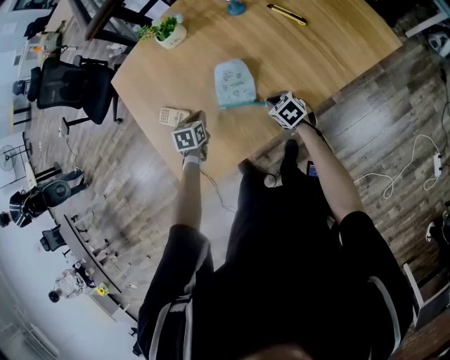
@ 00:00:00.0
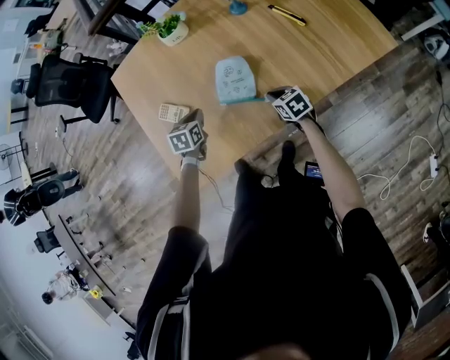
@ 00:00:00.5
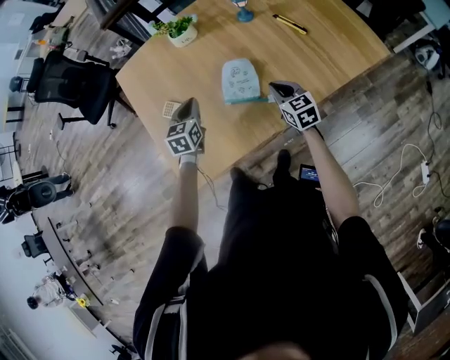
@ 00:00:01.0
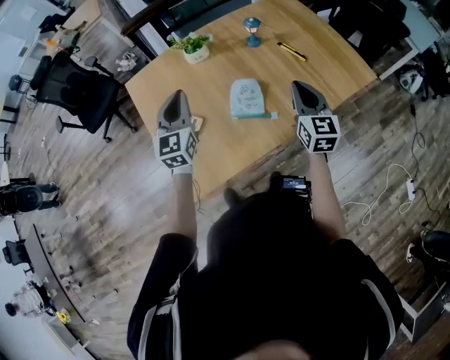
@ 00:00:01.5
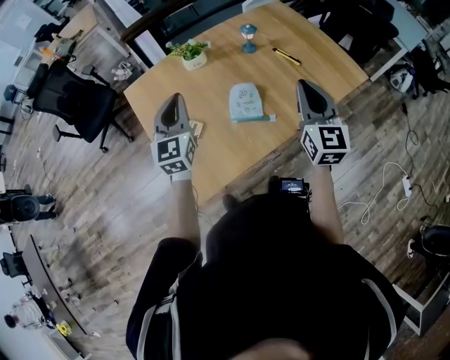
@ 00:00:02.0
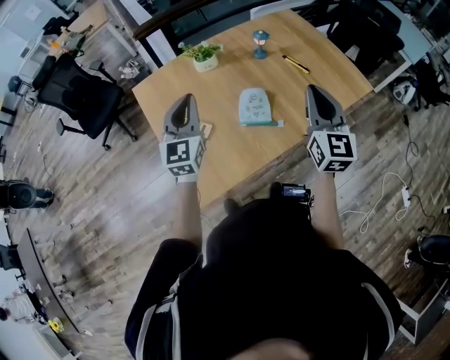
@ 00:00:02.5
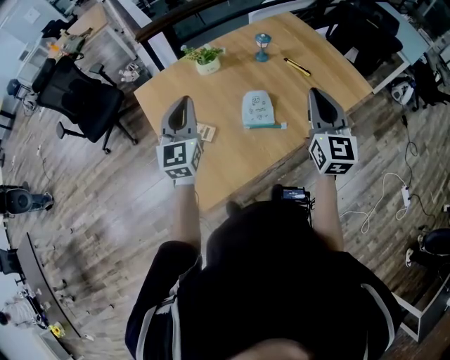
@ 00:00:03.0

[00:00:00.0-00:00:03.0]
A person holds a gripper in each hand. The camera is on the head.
00:00:00.0 to 00:00:01.5: The grippers both shift upward by some 35 cm. The right gripper angles its fingers upward, by approximately 40 degrees. Meanwhile the left gripper angles its fingers upward, by some 50 degrees.
00:00:01.5 to 00:00:03.0: The right gripper shifts some 15 cm upward and backward; the left gripper moves upward, about 5 cm.

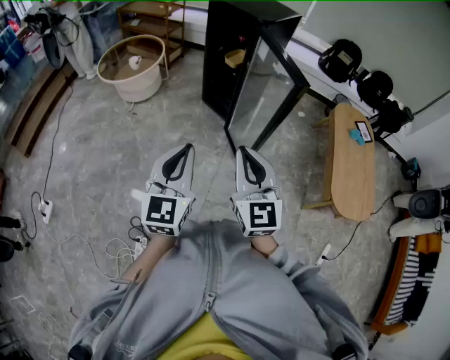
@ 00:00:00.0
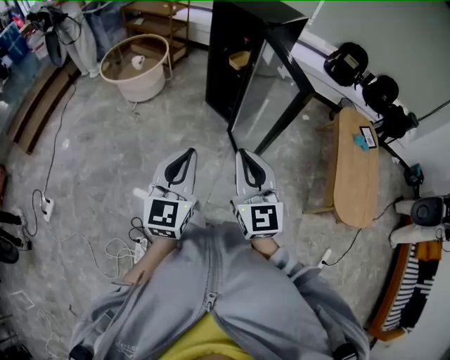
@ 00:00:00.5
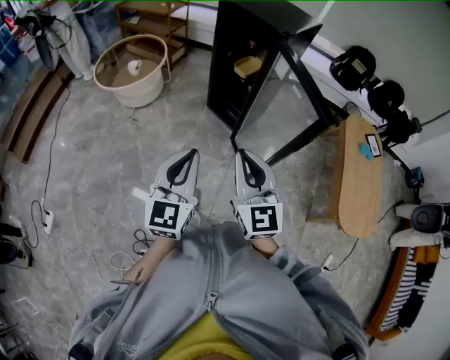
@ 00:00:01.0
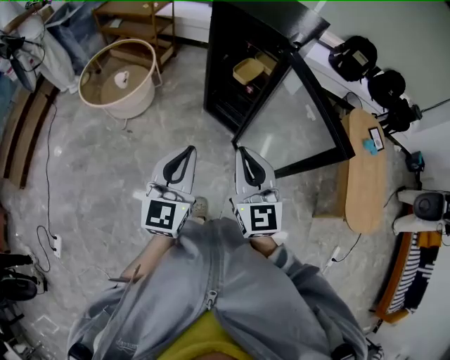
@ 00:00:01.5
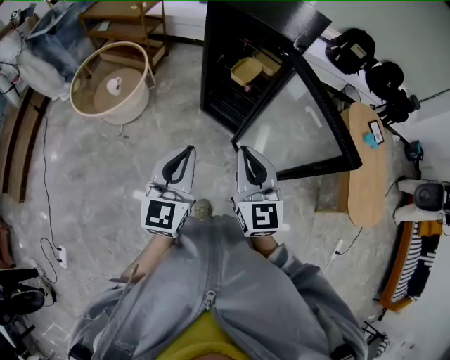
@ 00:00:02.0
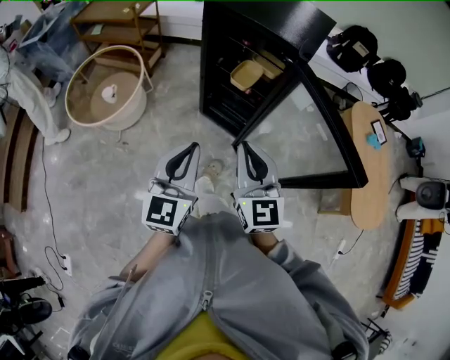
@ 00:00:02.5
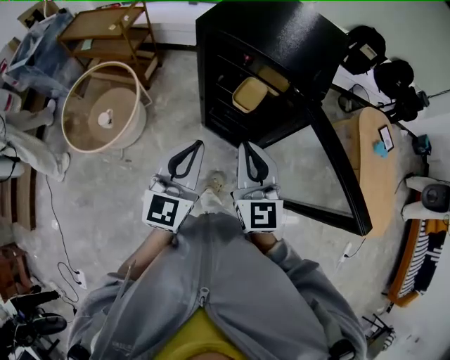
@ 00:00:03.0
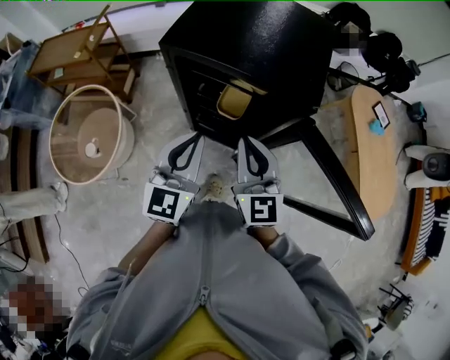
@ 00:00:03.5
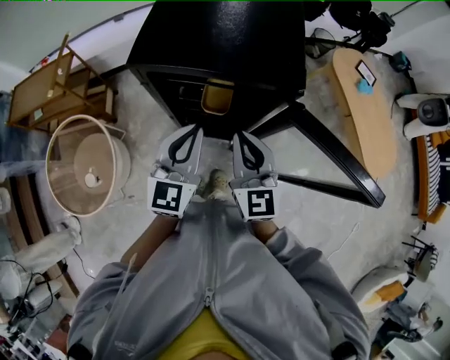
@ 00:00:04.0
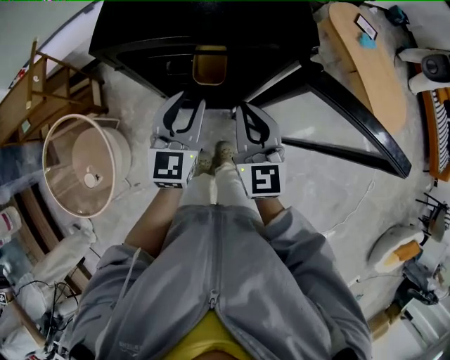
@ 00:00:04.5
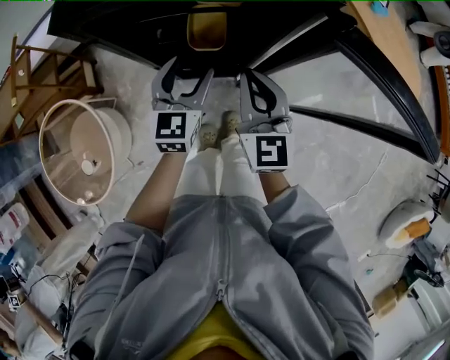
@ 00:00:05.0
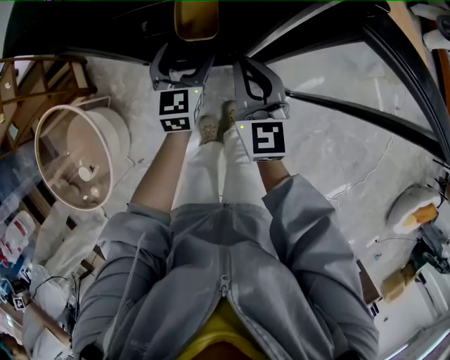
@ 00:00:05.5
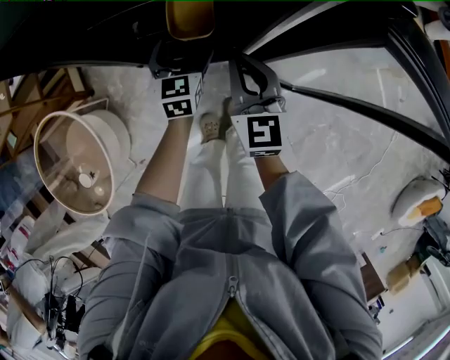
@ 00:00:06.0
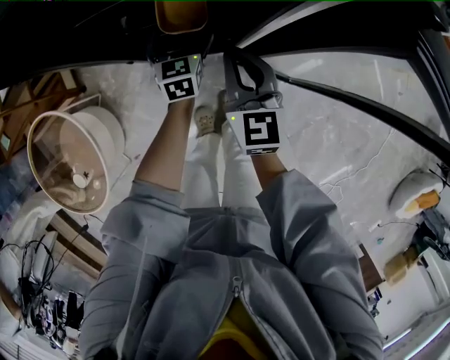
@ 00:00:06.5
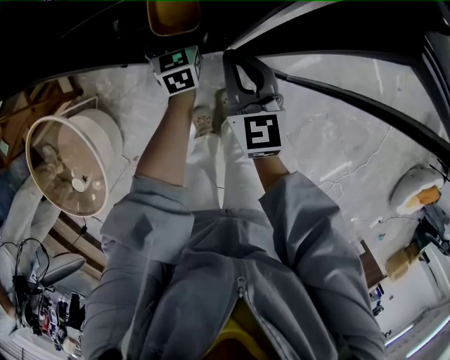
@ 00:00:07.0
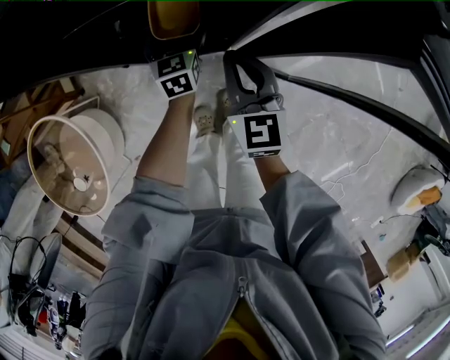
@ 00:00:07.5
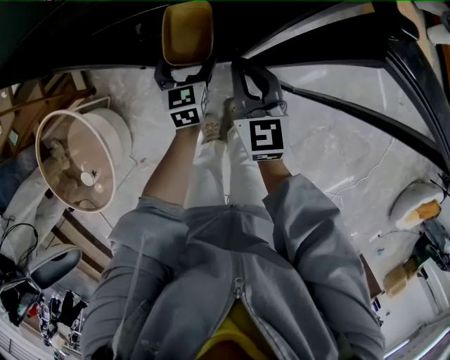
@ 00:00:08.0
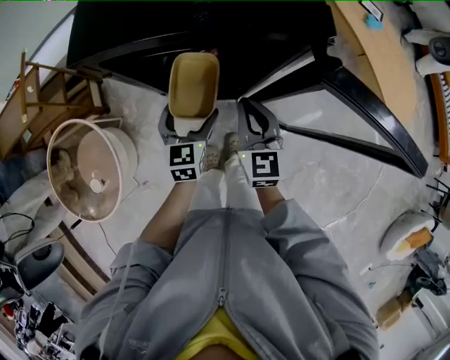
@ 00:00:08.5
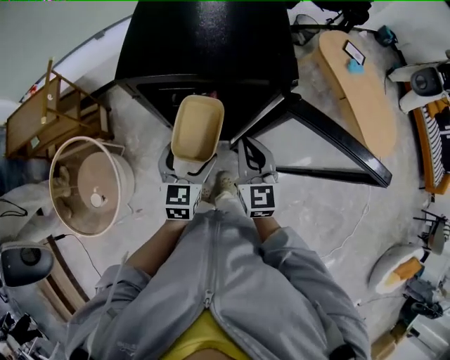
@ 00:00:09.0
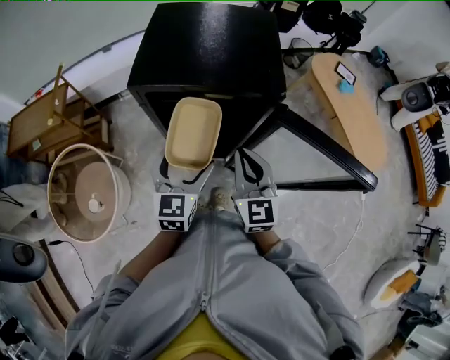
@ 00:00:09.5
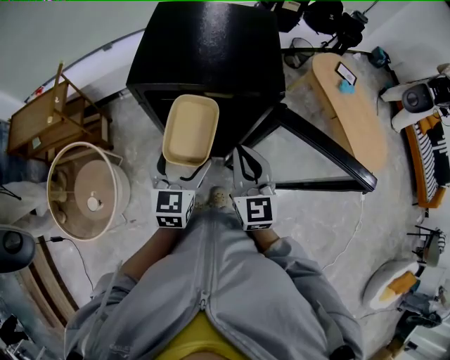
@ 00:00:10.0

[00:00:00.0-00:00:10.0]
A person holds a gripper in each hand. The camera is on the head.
00:00:00.0 to 00:00:02.0: The two grippers go roughly 35 cm forward.
00:00:02.0 to 00:00:04.0: The left gripper shifts by approximately 40 cm, and swivels about 30 degrees. The right gripper shifts by about 35 cm, and swivels some 30 degrees.
00:00:04.0 to 00:00:06.0: Both grippers travel together downward, roughly 30 cm. The left gripper swivels approximately 20 degrees, and opens its fingers.
00:00:08.0 to 00:00:10.0: The right gripper moves upward, some 25 cm; the left gripper shifts roughly 35 cm upward and backward.

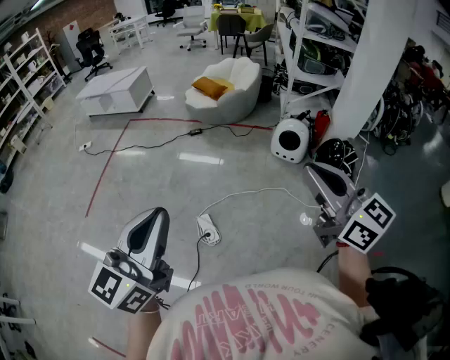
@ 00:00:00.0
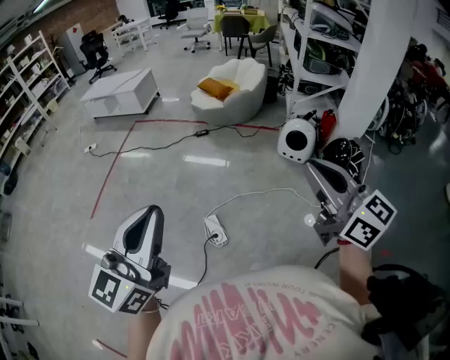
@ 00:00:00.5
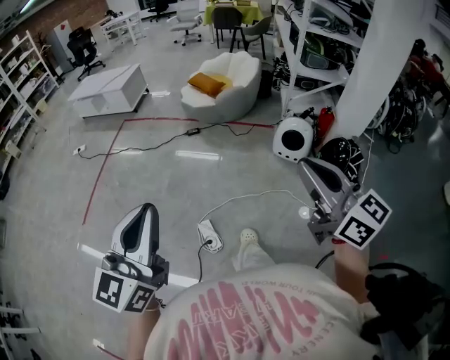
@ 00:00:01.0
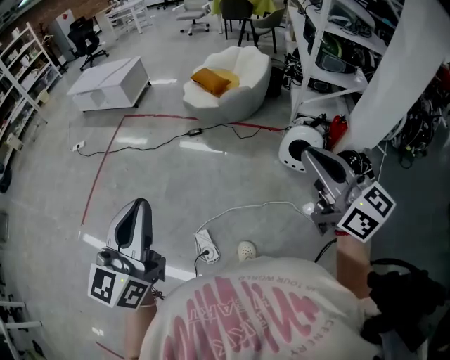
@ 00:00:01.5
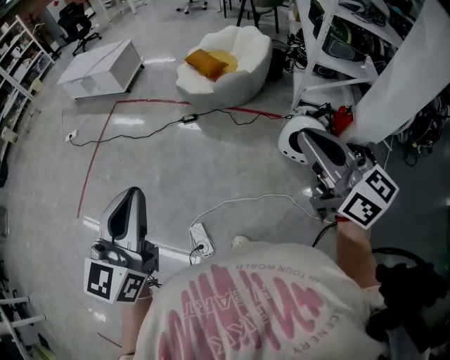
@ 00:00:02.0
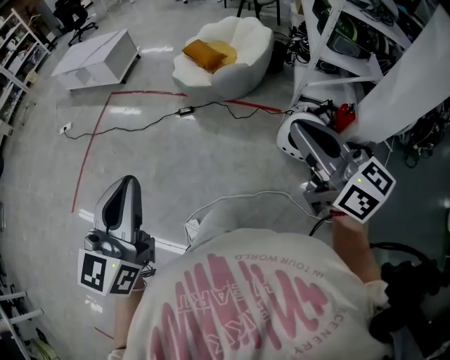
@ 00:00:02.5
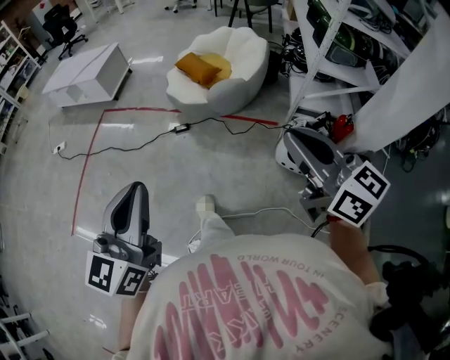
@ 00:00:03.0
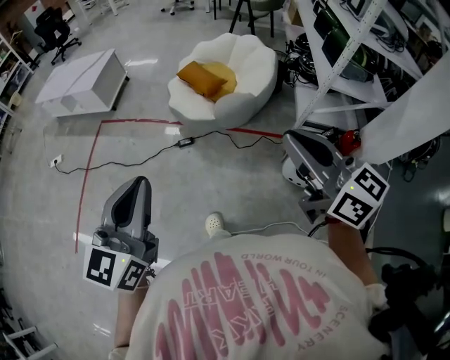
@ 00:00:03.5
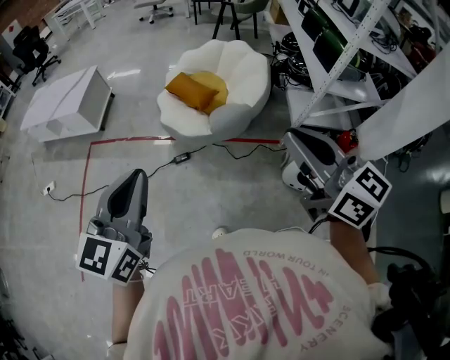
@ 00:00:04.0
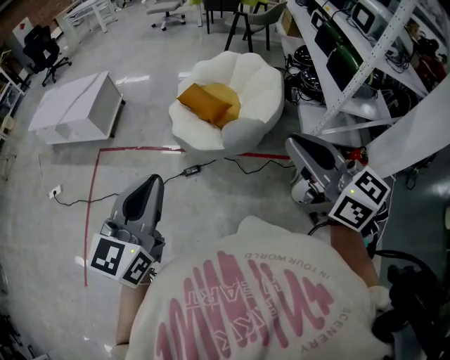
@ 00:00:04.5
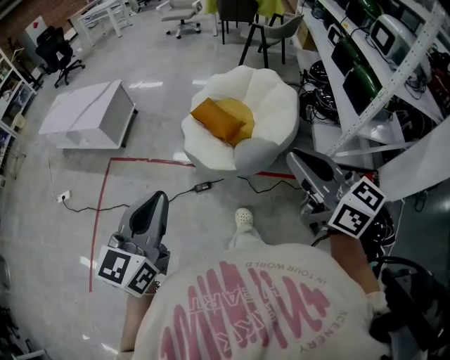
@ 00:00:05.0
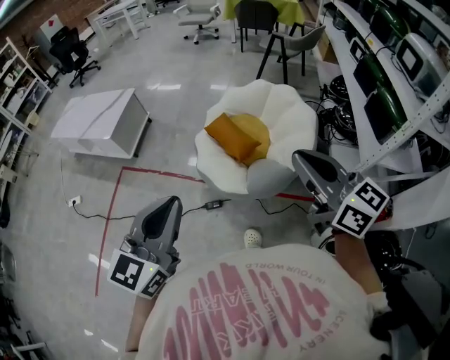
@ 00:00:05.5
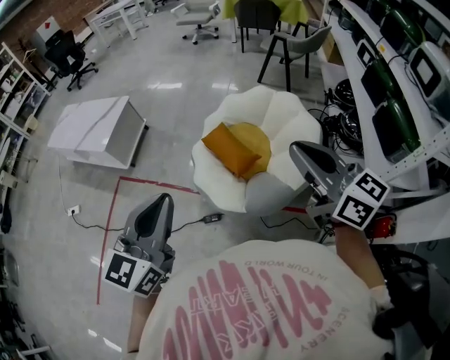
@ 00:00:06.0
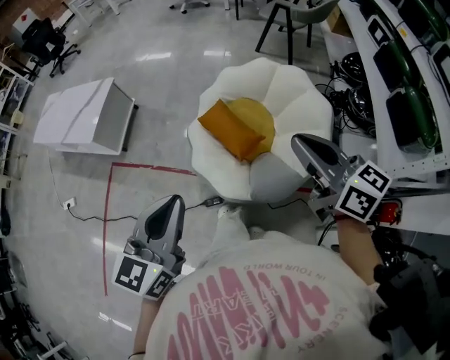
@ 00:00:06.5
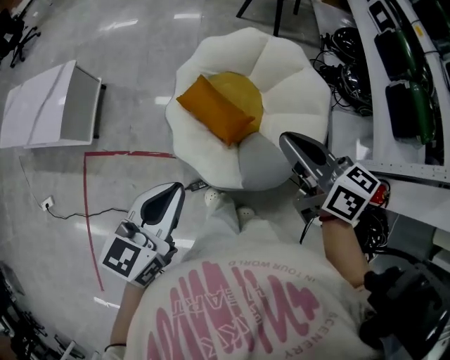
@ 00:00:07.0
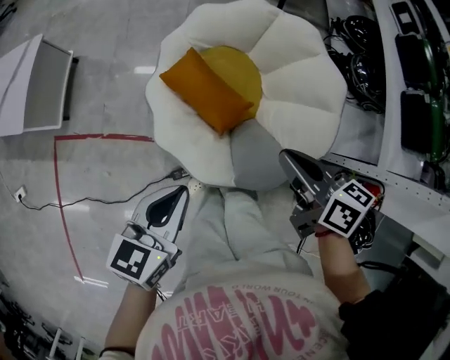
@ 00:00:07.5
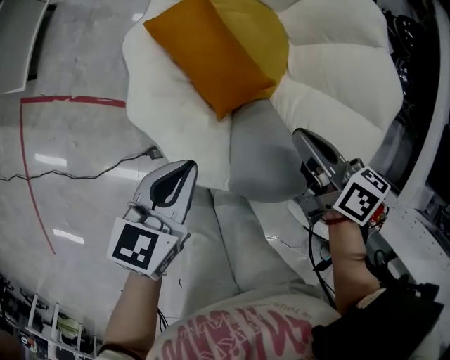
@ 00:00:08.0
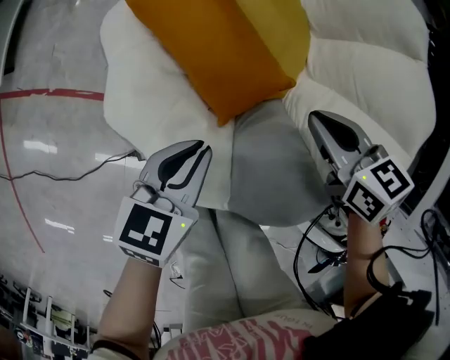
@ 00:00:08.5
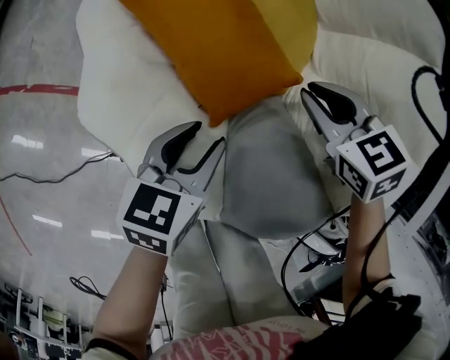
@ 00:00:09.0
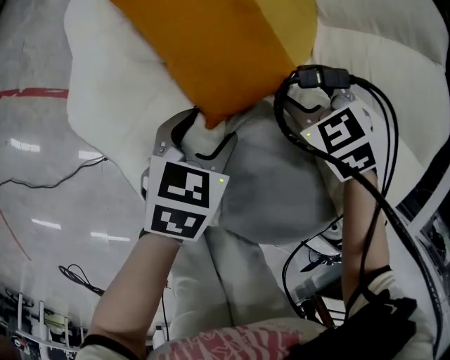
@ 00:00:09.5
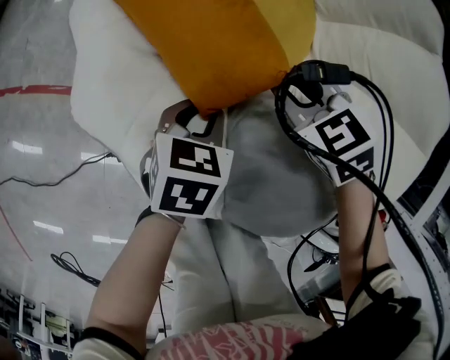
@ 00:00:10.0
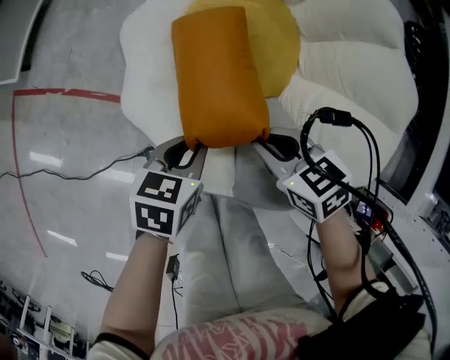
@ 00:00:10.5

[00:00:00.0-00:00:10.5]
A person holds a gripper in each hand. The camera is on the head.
00:00:00.0 to 00:00:02.0: Both grippers travel together forward, approximately 40 cm.
00:00:02.0 to 00:00:04.0: Both grippers travel together forward, about 40 cm.
00:00:04.0 to 00:00:06.5: The two grippers travel together, forward, some 40 cm.
00:00:06.5 to 00:00:08.5: Both grippers move downward, approximately 50 cm. The left gripper turns by about 40 degrees. The right gripper points its fingers some 50 degrees further downward.
00:00:08.5 to 00:00:10.5: The left gripper reaches about 15 cm downward, then returns, and opens, then closes once more. The right gripper goes downward and returns, about 10 cm each way, and opens and closes again.

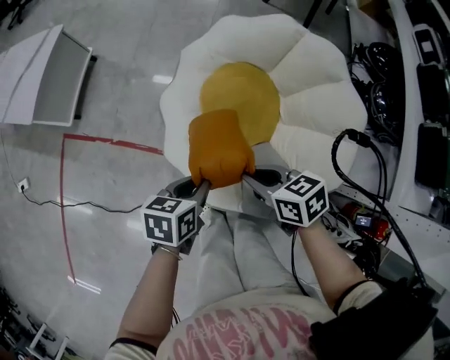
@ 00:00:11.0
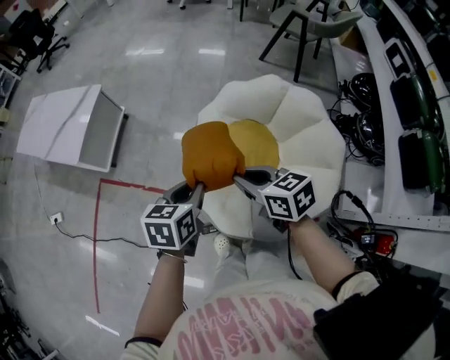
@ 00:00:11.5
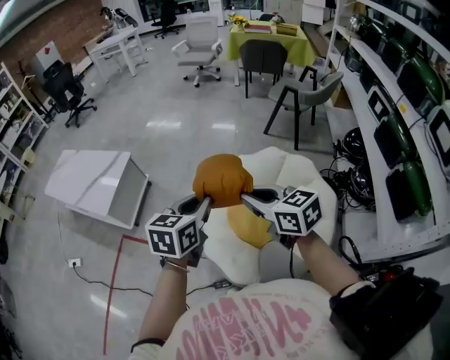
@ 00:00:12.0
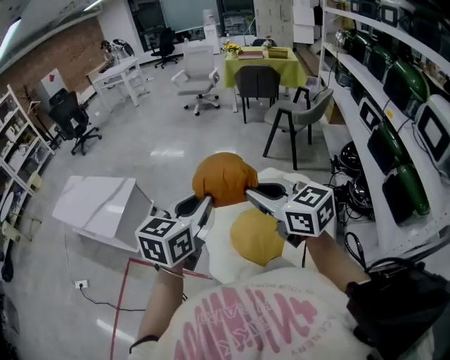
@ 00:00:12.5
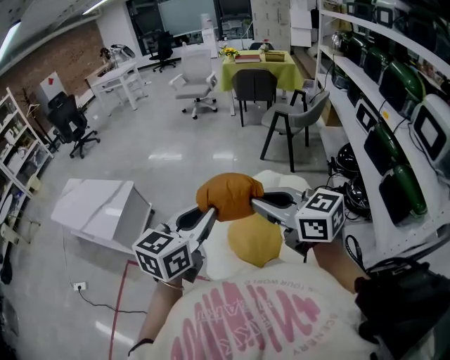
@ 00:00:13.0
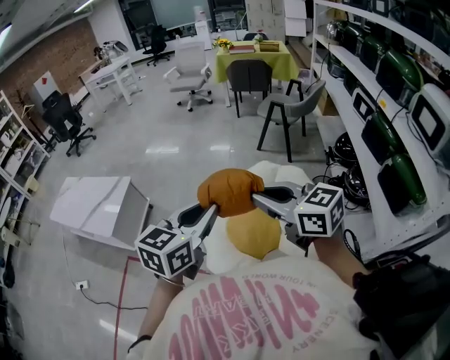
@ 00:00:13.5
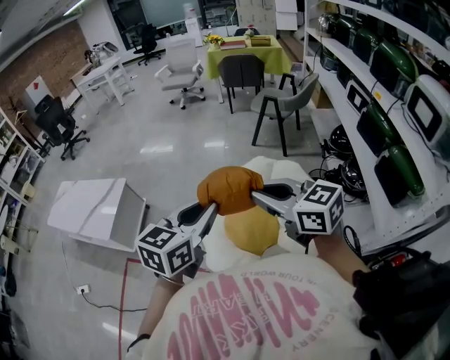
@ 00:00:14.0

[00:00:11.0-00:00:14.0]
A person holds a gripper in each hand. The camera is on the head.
00:00:11.0 to 00:00:12.5: Both grippers move upward, some 50 cm. The right gripper points its fingers roughly 30 degrees further upward. The left gripper points its fingers about 30 degrees further upward.
00:00:12.5 to 00:00:14.0: The left gripper ends up some 5 cm from where it was.
